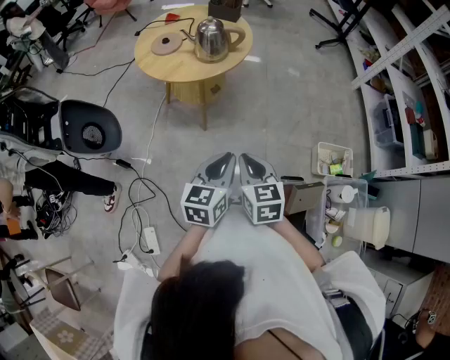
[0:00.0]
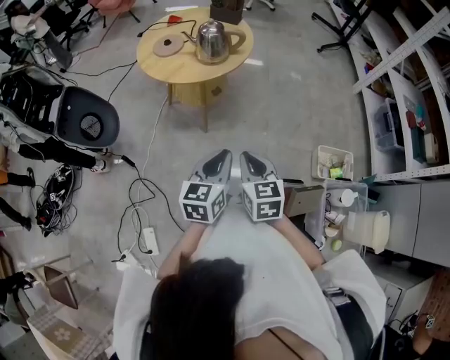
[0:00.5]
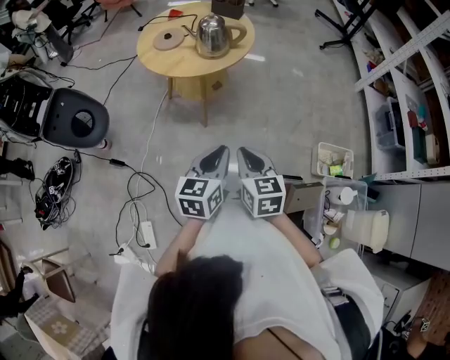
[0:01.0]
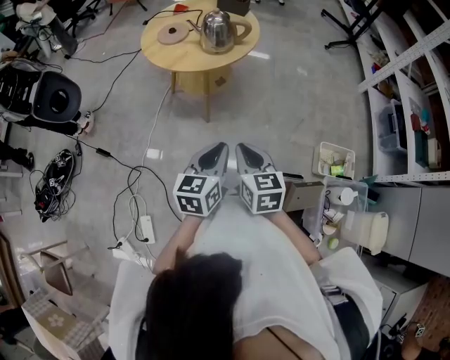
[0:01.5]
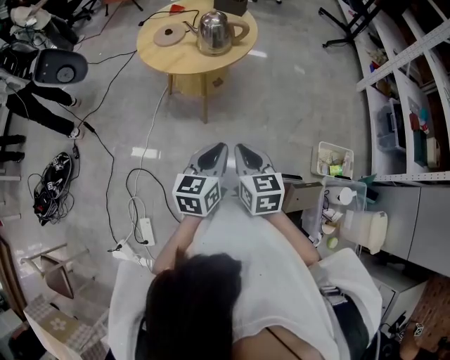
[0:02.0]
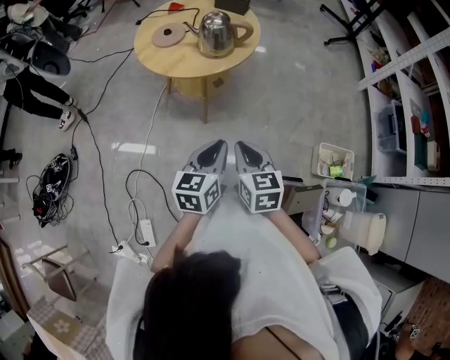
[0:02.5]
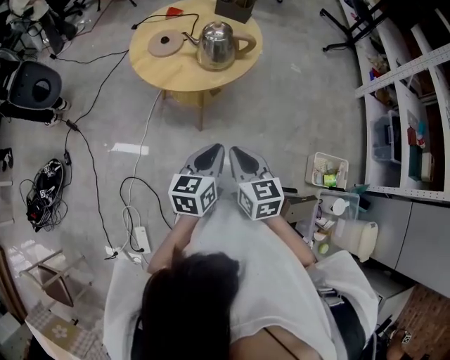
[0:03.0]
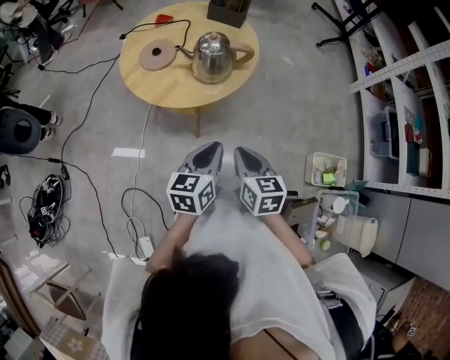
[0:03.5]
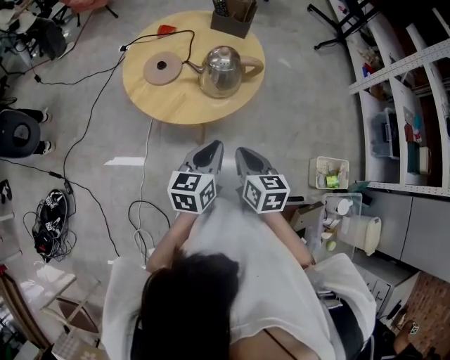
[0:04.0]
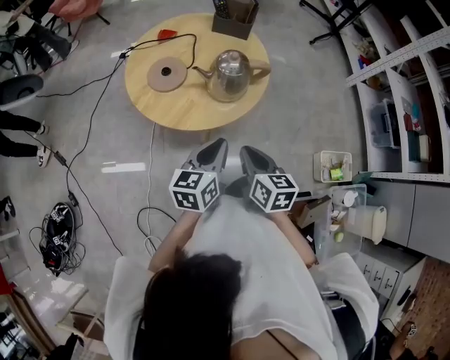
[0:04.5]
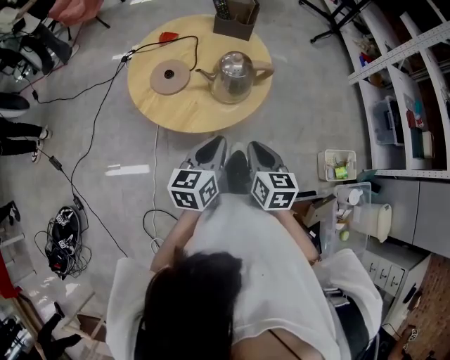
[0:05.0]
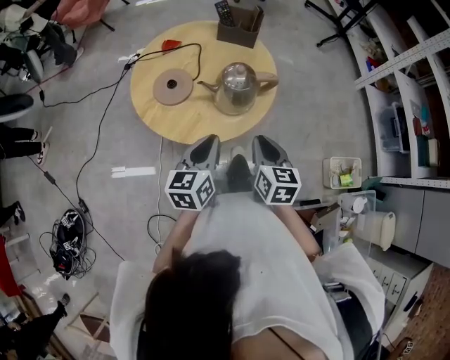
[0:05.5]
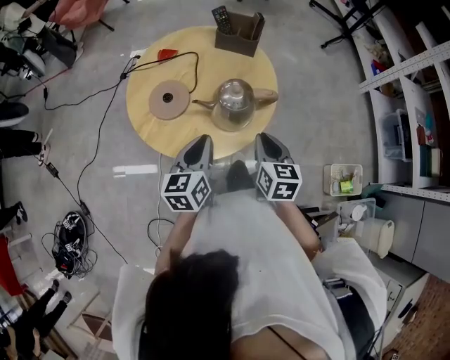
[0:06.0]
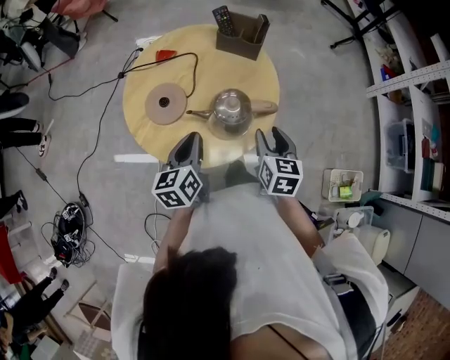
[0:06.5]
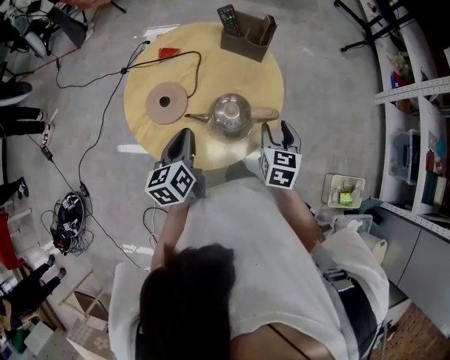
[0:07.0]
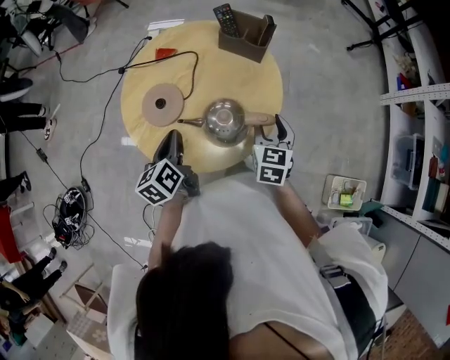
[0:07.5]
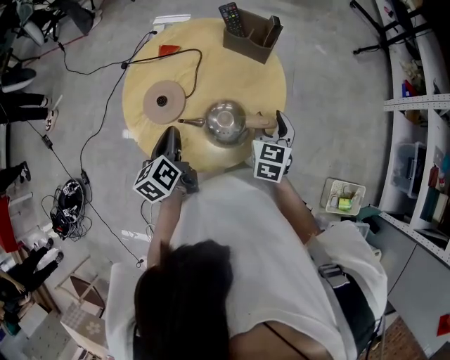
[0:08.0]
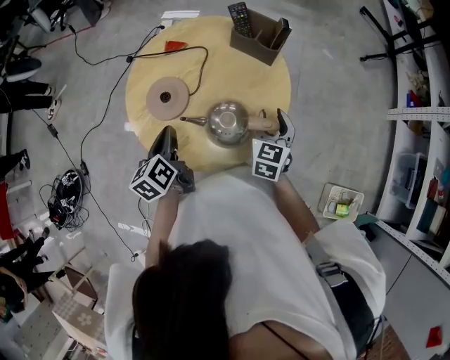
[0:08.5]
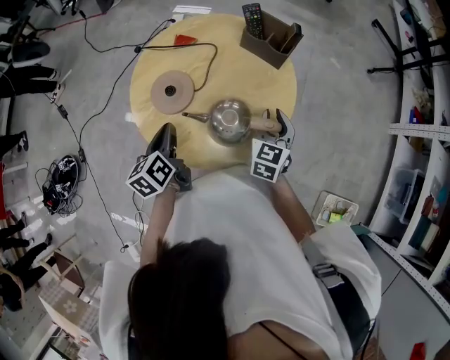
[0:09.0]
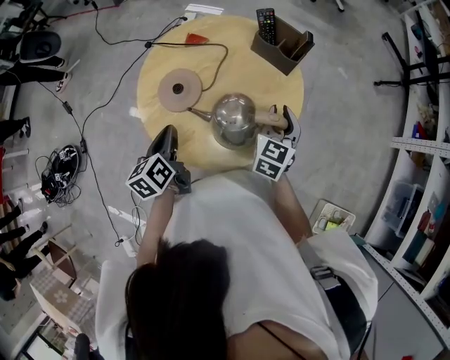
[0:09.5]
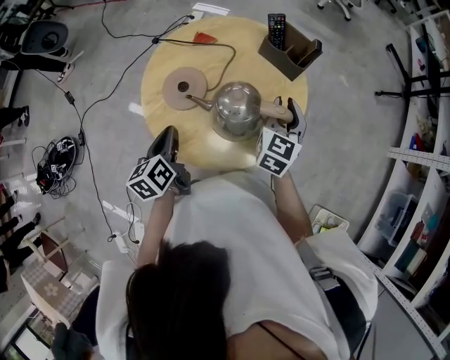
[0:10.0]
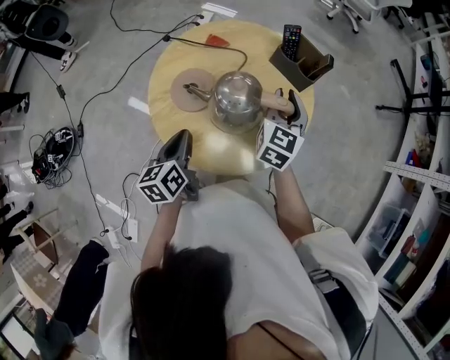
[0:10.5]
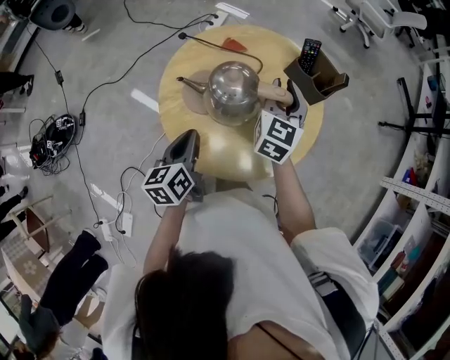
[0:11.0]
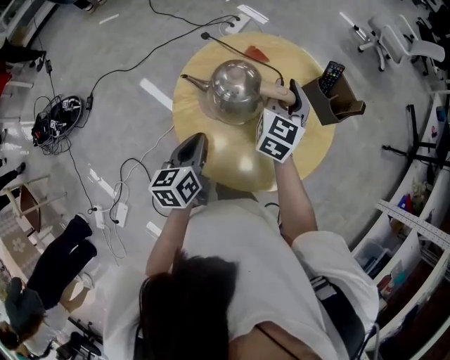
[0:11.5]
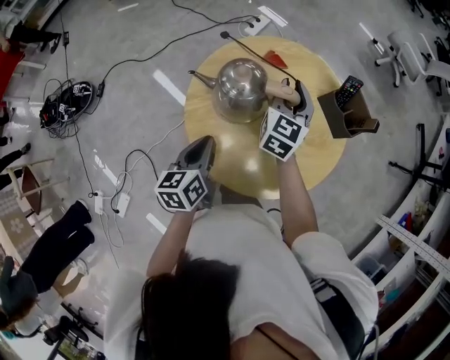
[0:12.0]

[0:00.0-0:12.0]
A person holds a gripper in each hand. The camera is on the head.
0:00.0 to 0:02.0: The grippers move only a little.
0:02.0 to 0:04.0: The left gripper shifts approximately 25 cm forward and to the left. Meanwhile the right gripper travels forward by some 25 cm.
0:04.0 to 0:06.0: The right gripper heads forward, covering some 15 cm, while the left gripper moves forward and to the left, some 15 cm.
0:06.0 to 0:08.0: The right gripper moves forward, about 15 cm, and opens up. The left gripper is displaced forward and to the left by some 10 cm, and rotates roughly 30 degrees.
0:08.0 to 0:10.0: The left gripper moves approximately 5 cm, while the right gripper heads forward and upward, covering some 10 cm, and closes its fingers.
0:10.0 to 0:12.0: The right gripper shifts roughly 25 cm to the left and forward, and changes its angle by approximately 20 degrees.

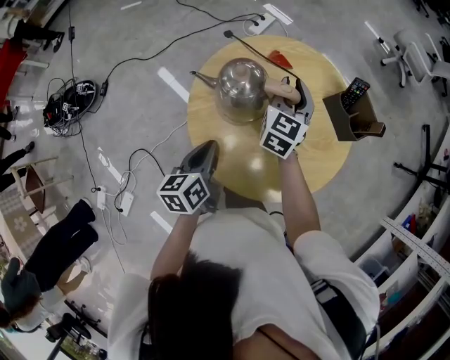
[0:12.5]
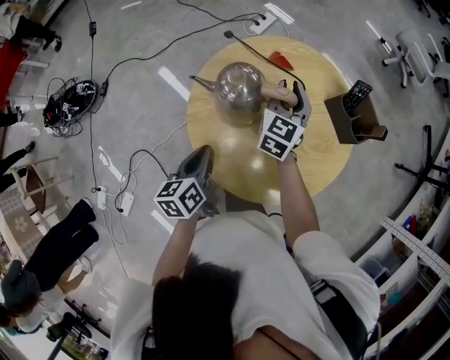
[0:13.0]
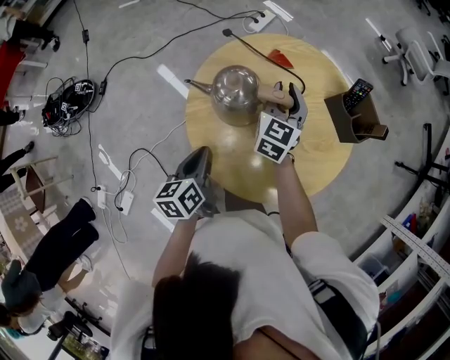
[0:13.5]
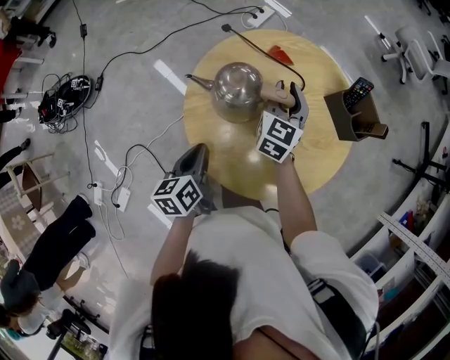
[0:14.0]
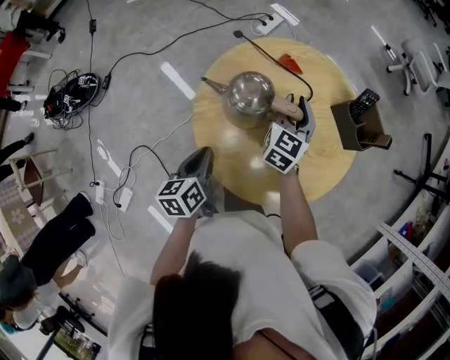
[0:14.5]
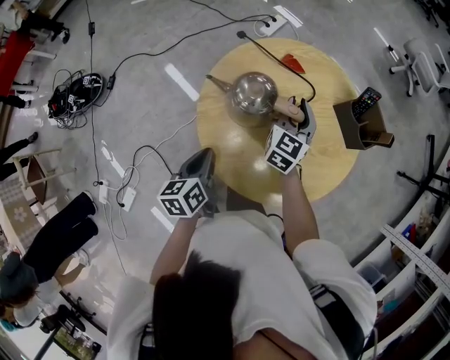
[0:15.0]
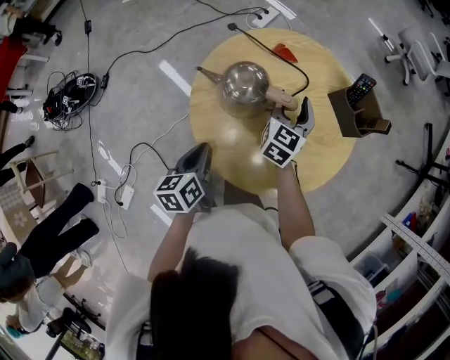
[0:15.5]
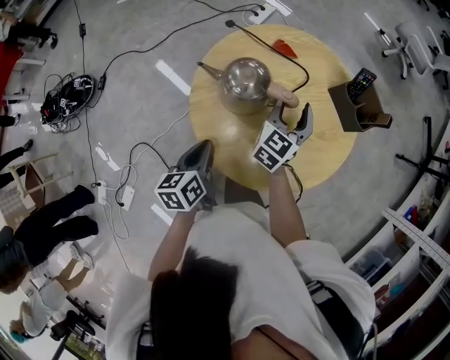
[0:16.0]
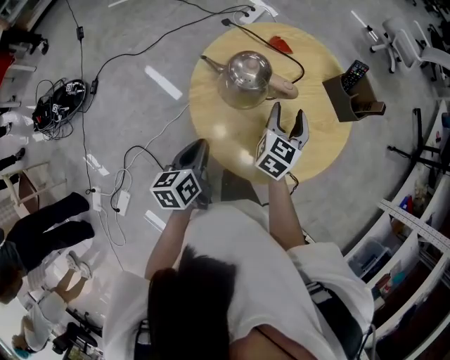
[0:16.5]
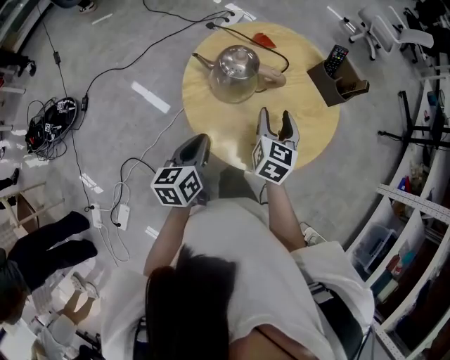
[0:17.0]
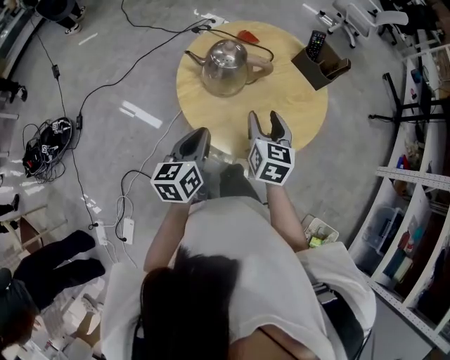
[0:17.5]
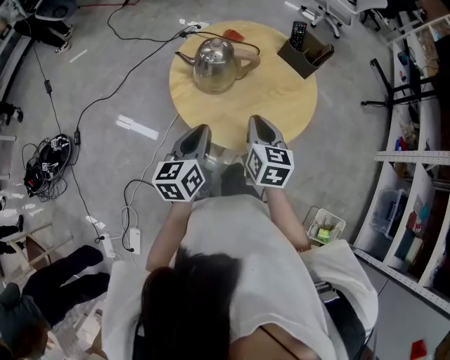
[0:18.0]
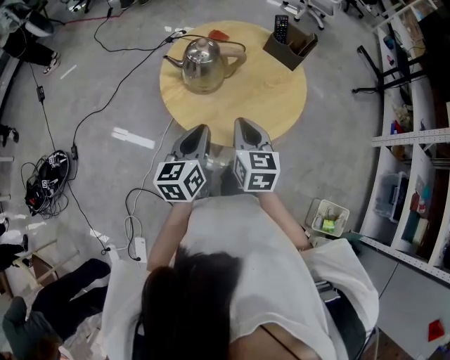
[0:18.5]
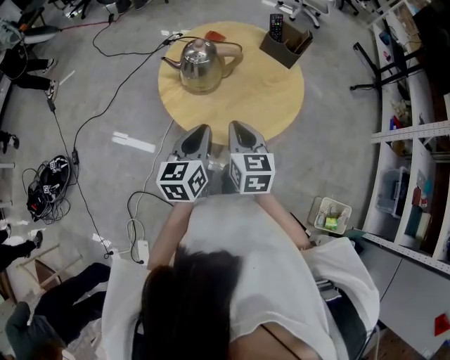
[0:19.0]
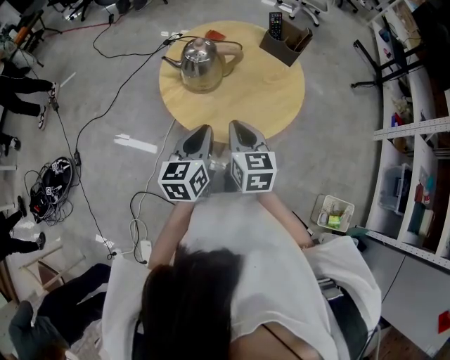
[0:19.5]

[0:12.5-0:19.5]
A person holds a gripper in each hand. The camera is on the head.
0:12.5 to 0:14.5: The grippers move only a little.
0:14.5 to 0:16.0: The right gripper moves roughly 5 cm, and opens up.
0:16.0 to 0:17.5: The left gripper travels upward by approximately 5 cm, and turns by approximately 20 degrees. Meanwhile the right gripper is displaced backward by roughly 20 cm.
0:17.5 to 0:19.5: The right gripper is displaced backward by approximately 10 cm, and closes its fingers; the left gripper changes place by approximately 5 cm.

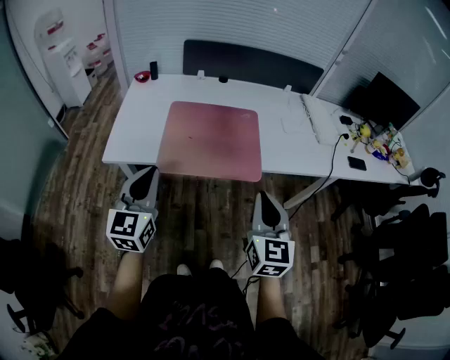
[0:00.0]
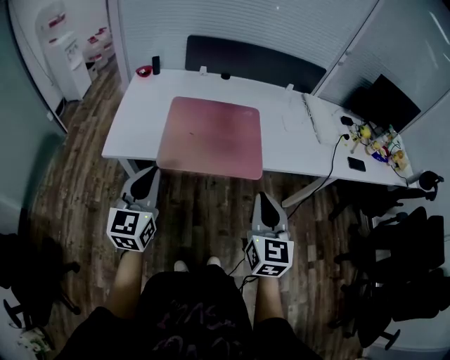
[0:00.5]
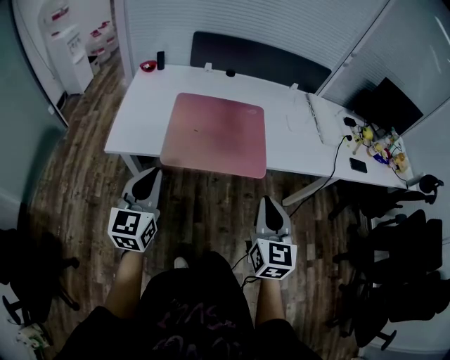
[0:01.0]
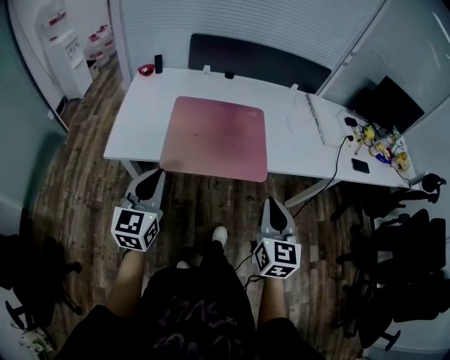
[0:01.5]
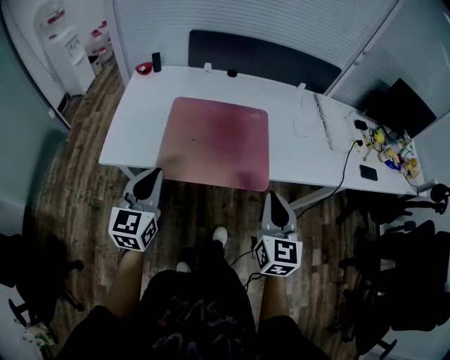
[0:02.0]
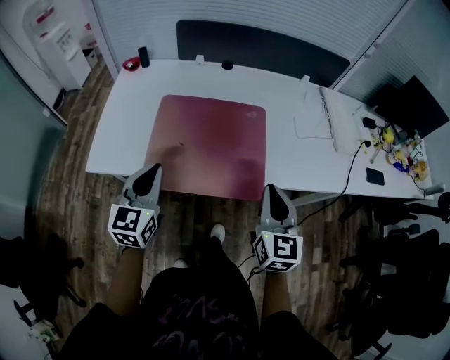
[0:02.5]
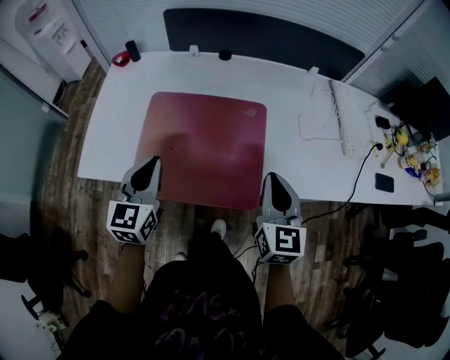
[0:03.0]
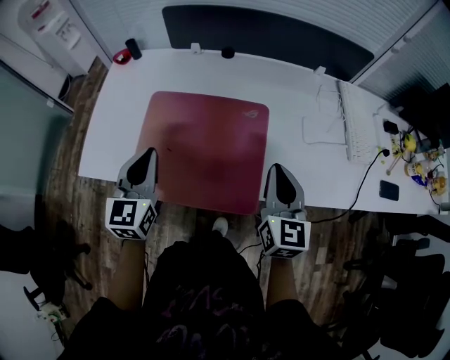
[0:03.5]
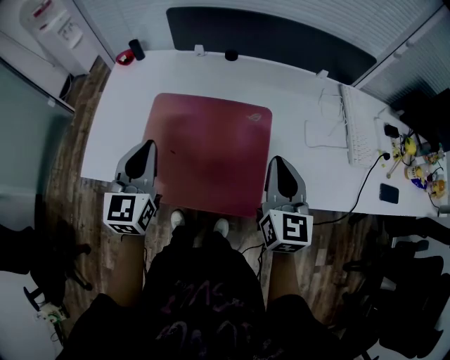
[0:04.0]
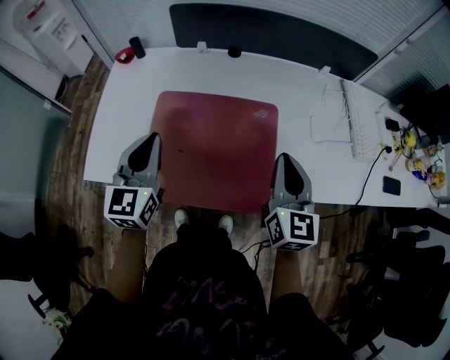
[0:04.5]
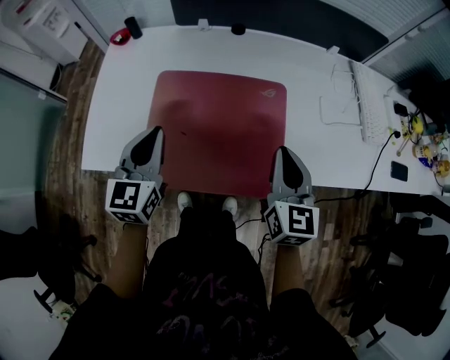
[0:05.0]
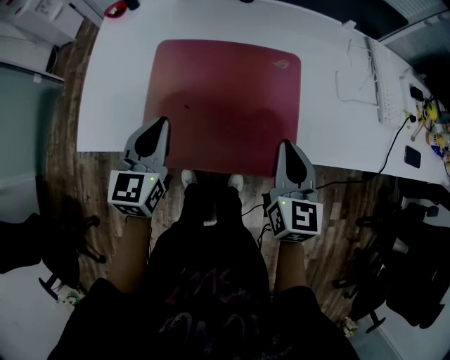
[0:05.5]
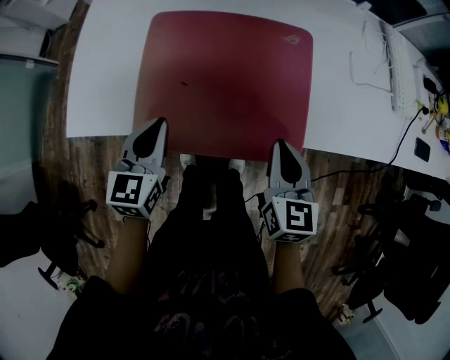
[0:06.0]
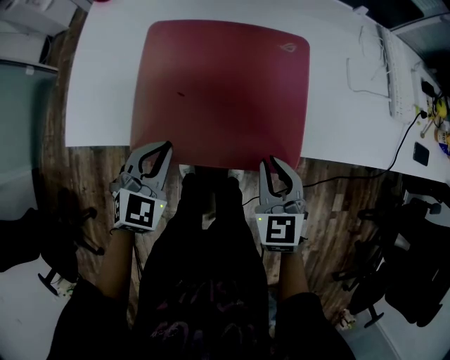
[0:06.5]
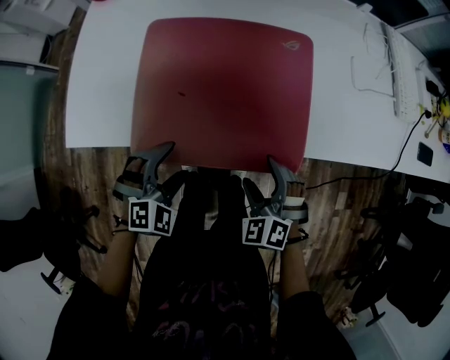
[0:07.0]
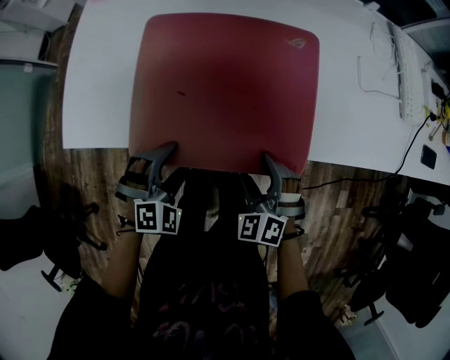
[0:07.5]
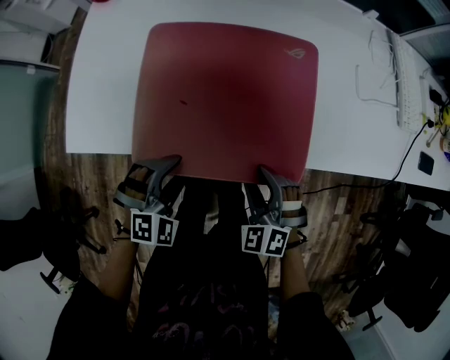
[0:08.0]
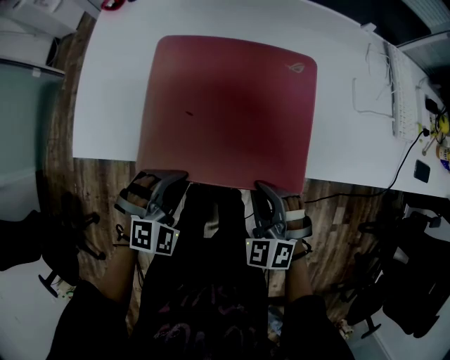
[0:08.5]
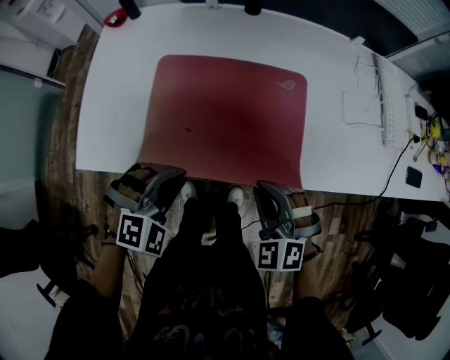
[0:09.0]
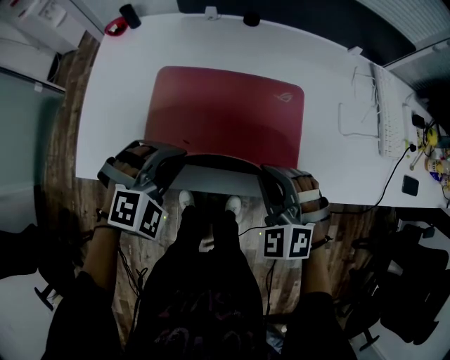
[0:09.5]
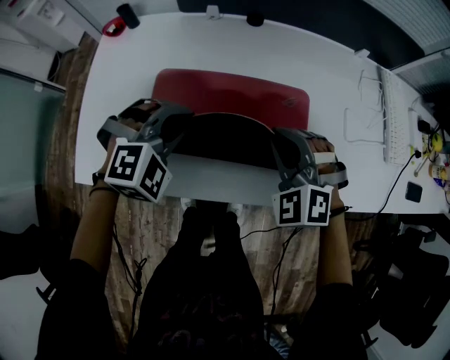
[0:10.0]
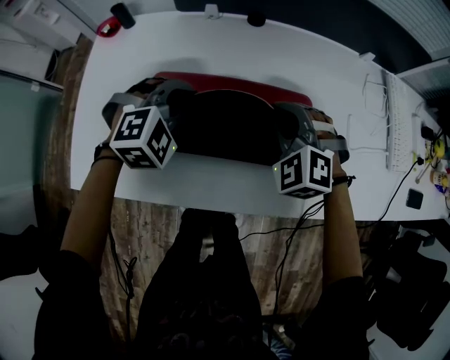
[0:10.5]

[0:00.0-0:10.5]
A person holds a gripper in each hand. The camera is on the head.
0:00.0 to 0:02.0: Both grippers move forward, about 10 cm.
0:02.0 to 0:04.0: Both grippers travel together forward, about 25 cm.
0:04.0 to 0:06.5: The left gripper heads downward and backward, covering about 20 cm, and swivels about 40 degrees. The right gripper travels downward, backward and to the left by some 20 cm, and changes its angle by approximately 30 degrees.
0:06.5 to 0:08.5: The right gripper travels downward and back again, some 10 cm each way, swivels some 40 degrees, and opens, then closes again; the left gripper reaches some 10 cm downward, then returns, rotates approximately 30 degrees, and opens, then closes again.
0:08.5 to 0:10.5: Both grippers travel together forward, about 30 cm.
